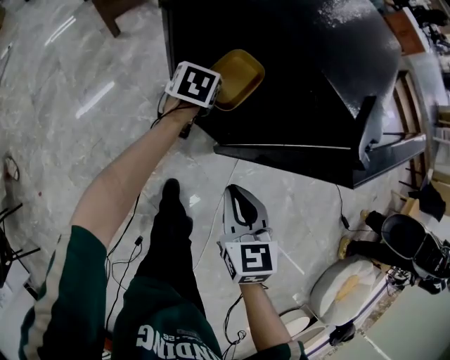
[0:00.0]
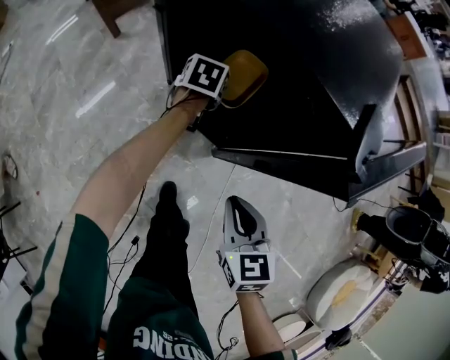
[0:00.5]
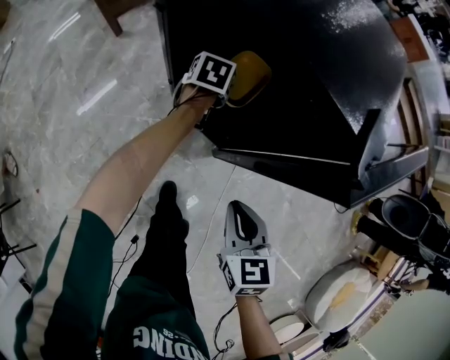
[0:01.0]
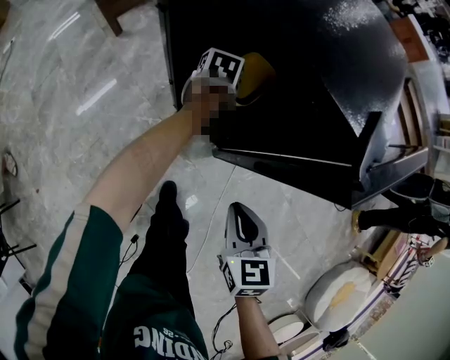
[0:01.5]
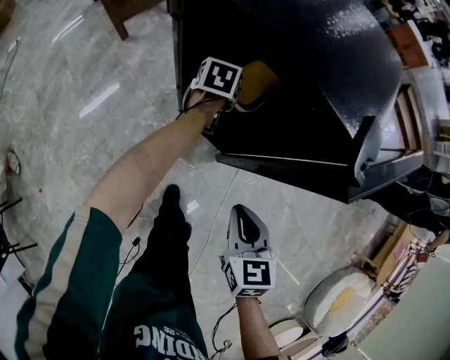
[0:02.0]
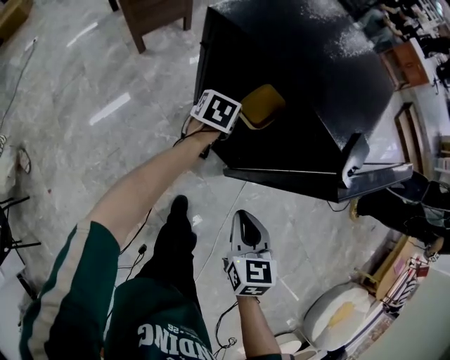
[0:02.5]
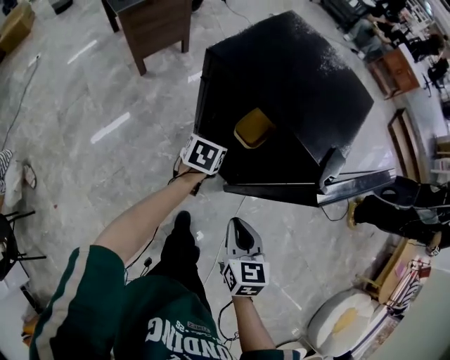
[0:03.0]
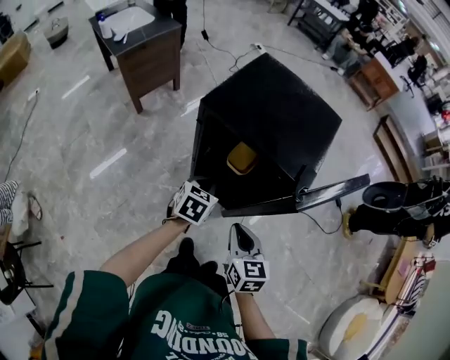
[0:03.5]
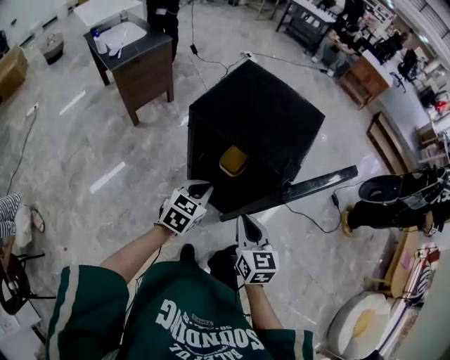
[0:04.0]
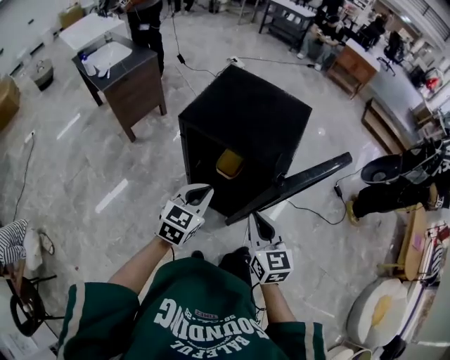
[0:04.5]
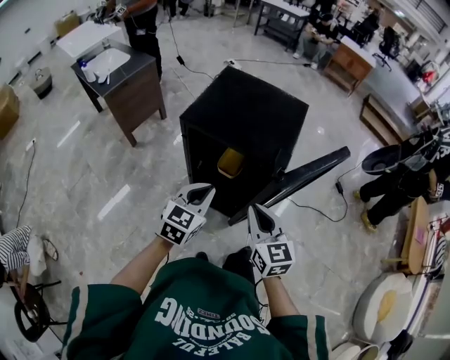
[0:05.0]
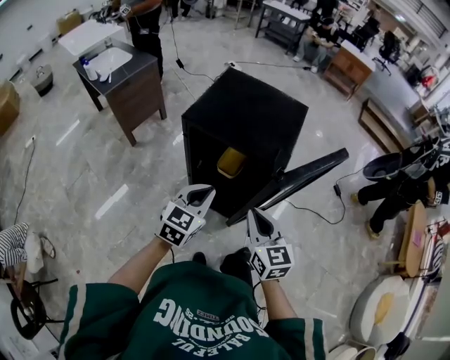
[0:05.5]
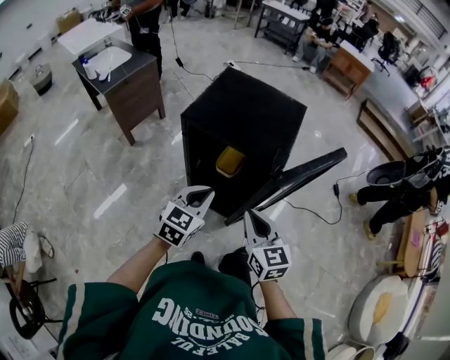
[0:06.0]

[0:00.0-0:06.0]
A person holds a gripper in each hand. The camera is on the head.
0:00.0 to 0:02.0: The left gripper shifts by approximately 5 cm, and opens up.
0:02.0 to 0:04.0: The right gripper is displaced upward by approximately 15 cm. The left gripper goes approximately 30 cm upward and backward, swivels about 40 degrees, and closes up.
0:04.0 to 0:06.0: Both grippers move upward, some 5 cm.

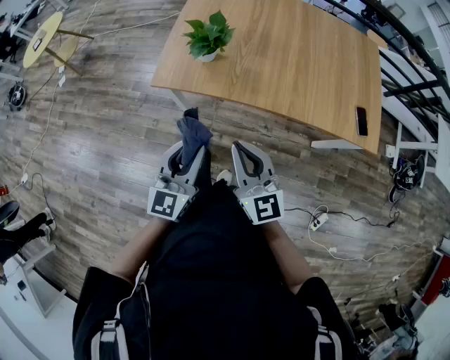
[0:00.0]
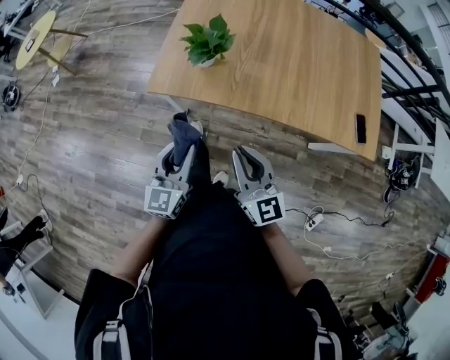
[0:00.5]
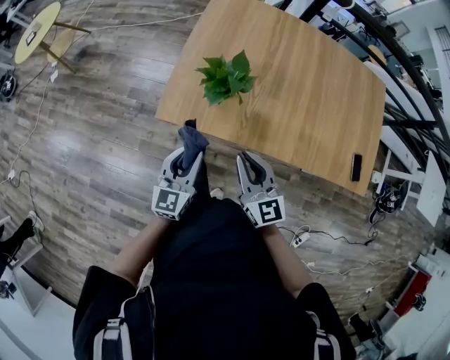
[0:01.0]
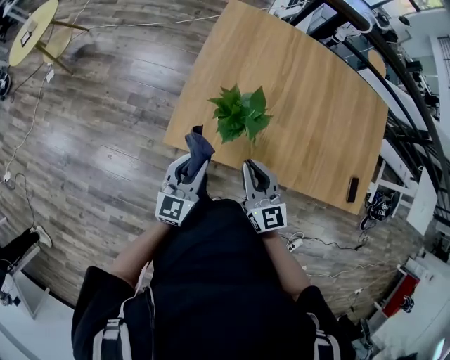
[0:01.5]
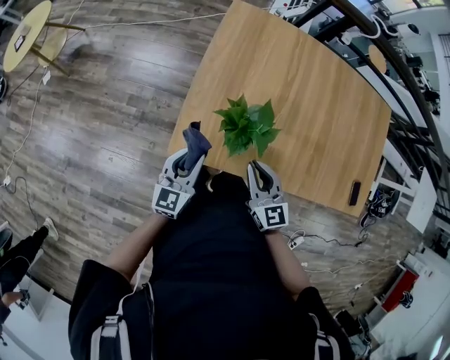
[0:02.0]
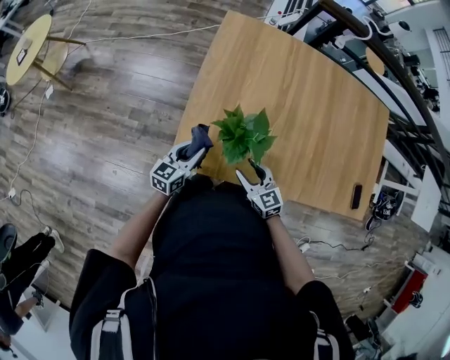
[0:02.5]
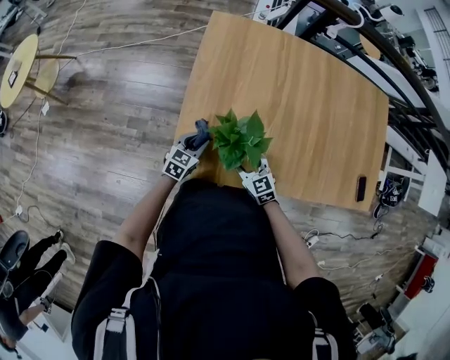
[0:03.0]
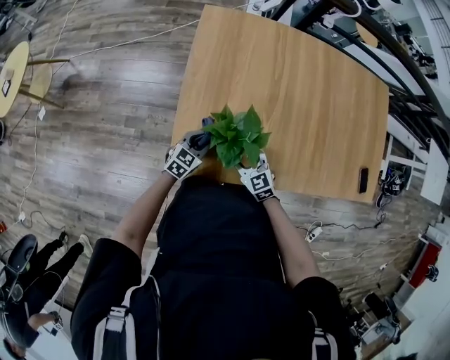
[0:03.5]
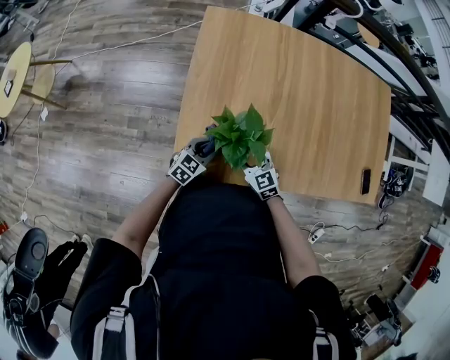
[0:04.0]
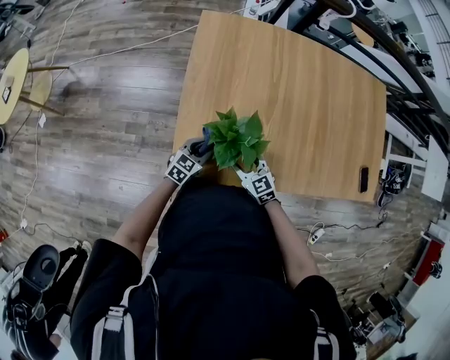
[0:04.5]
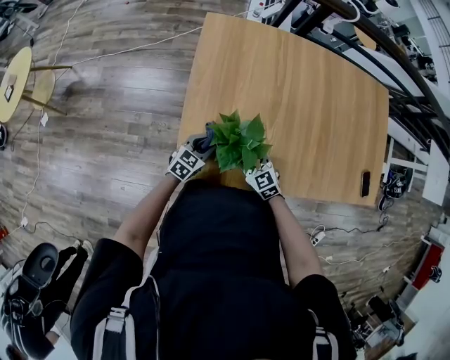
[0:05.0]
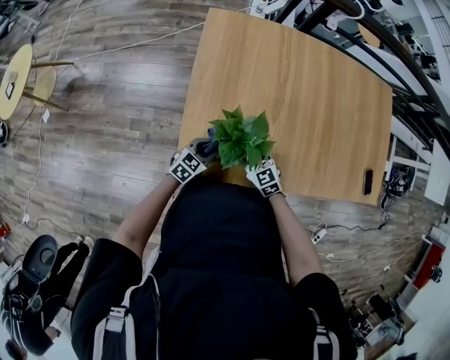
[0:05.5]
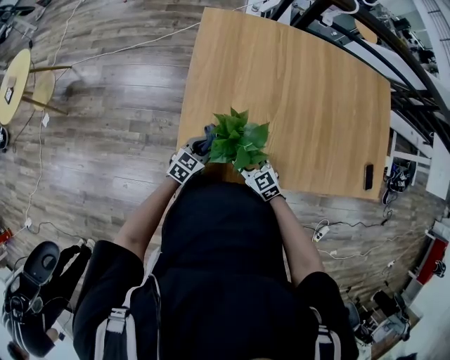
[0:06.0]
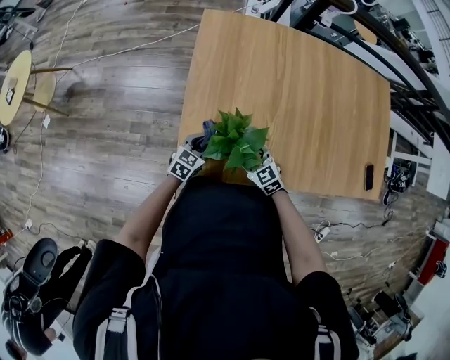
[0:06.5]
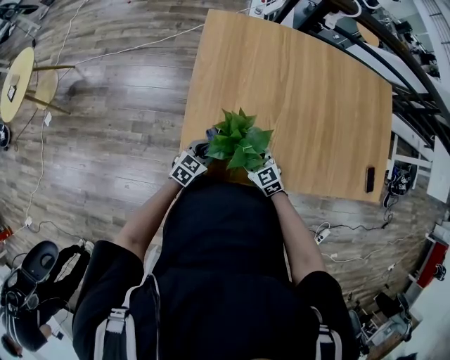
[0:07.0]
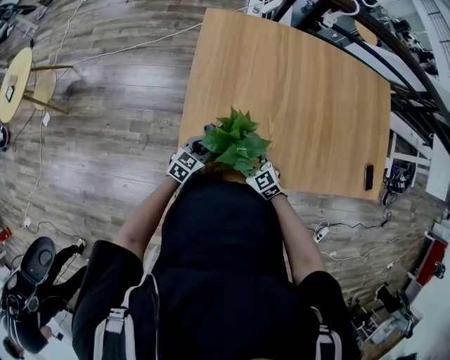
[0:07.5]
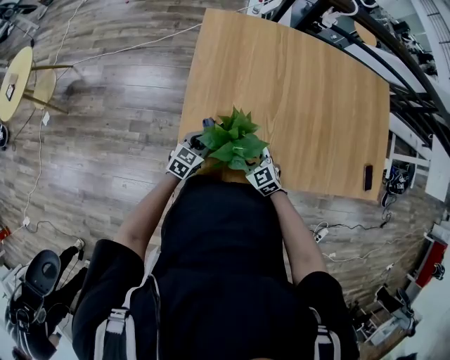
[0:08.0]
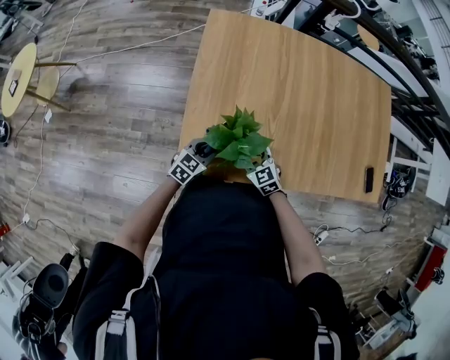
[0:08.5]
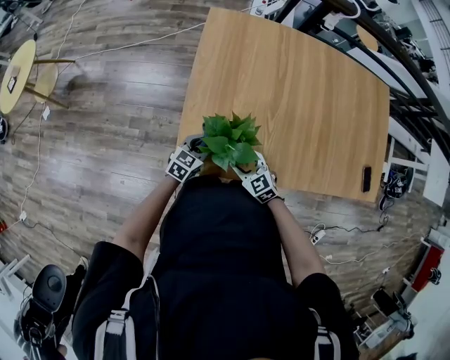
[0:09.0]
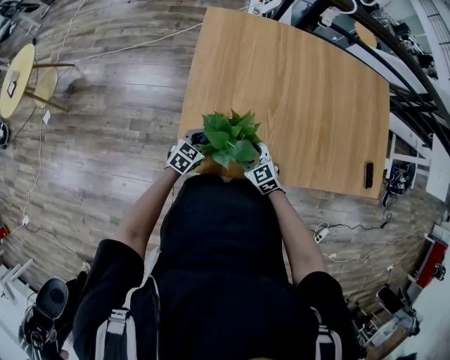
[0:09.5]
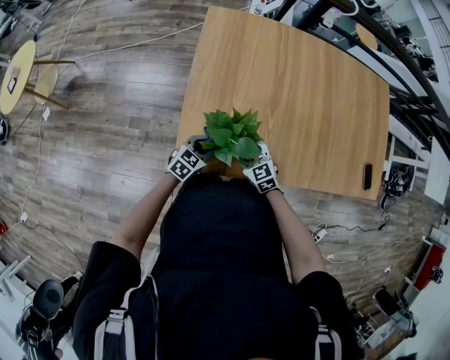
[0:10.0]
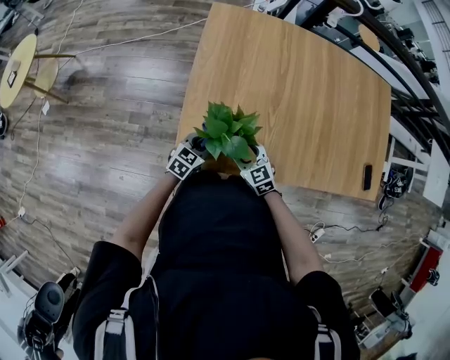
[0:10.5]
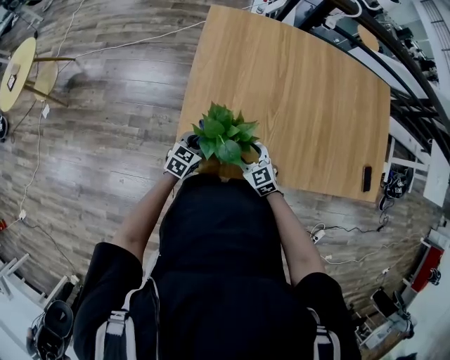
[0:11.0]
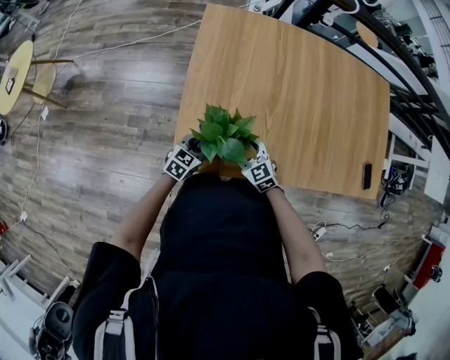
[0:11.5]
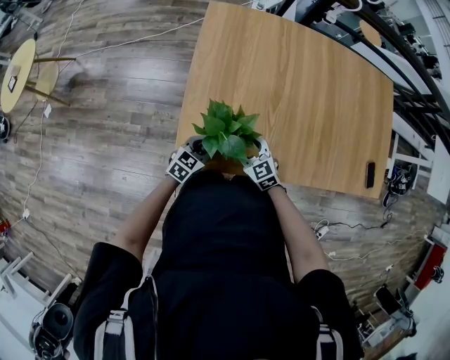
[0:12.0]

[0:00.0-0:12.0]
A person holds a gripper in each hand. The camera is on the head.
0:00.0 to 0:02.0: The left gripper shifts roughly 30 cm forward and to the left. Meanwhile the right gripper moves forward, roughly 25 cm.
0:02.0 to 0:04.0: The left gripper goes about 20 cm downward, forward and to the right, and swivels approximately 40 degrees; the right gripper heads downward and forward, covering roughly 15 cm, and opens up.
0:04.0 to 0:12.0: There are only small adjustments of the grippers.

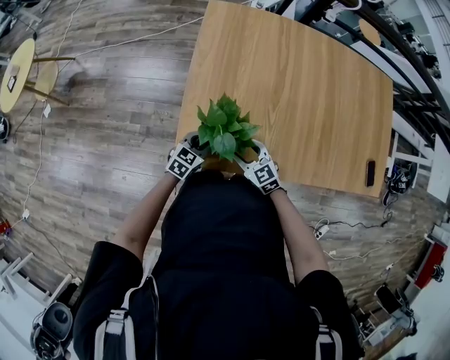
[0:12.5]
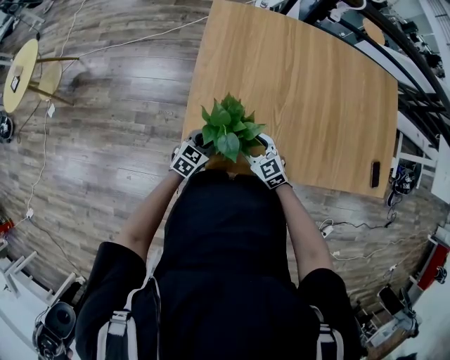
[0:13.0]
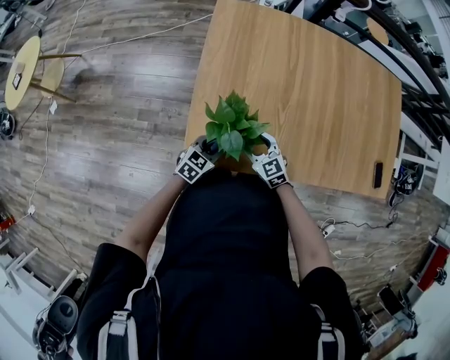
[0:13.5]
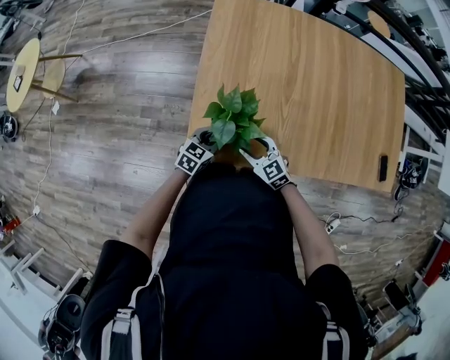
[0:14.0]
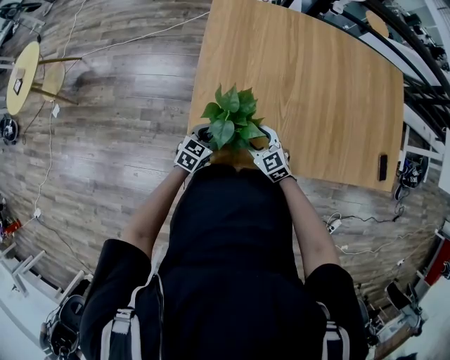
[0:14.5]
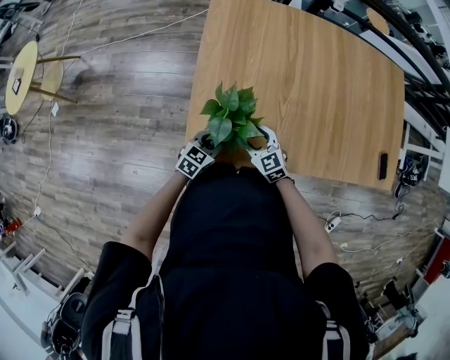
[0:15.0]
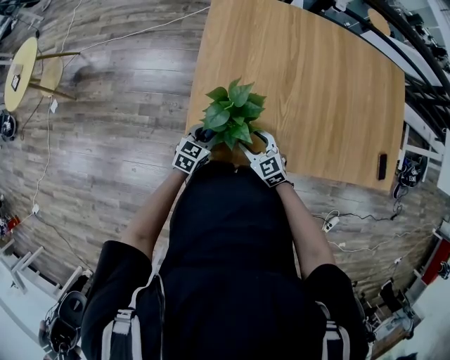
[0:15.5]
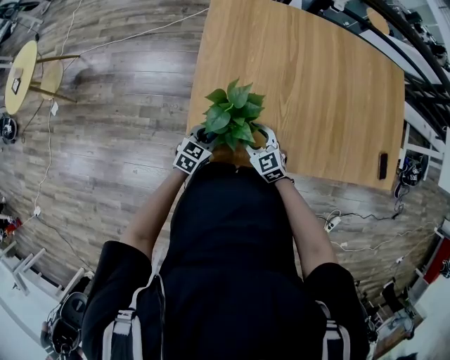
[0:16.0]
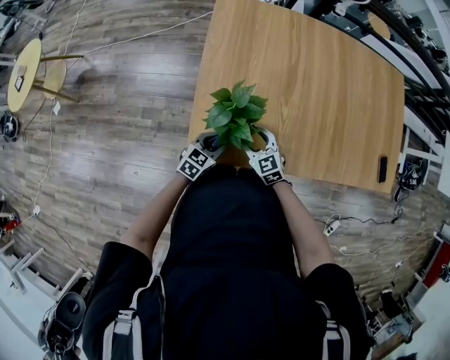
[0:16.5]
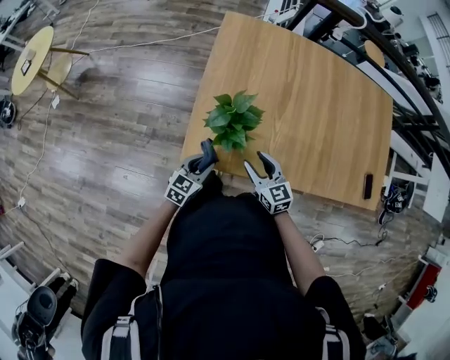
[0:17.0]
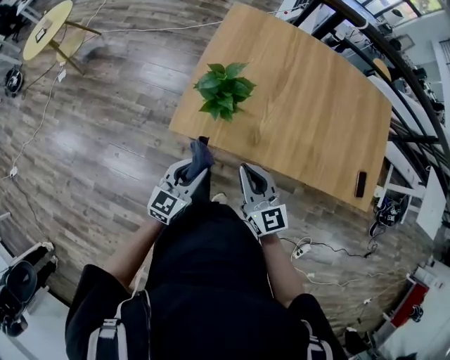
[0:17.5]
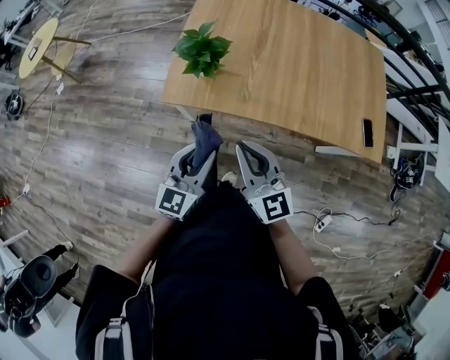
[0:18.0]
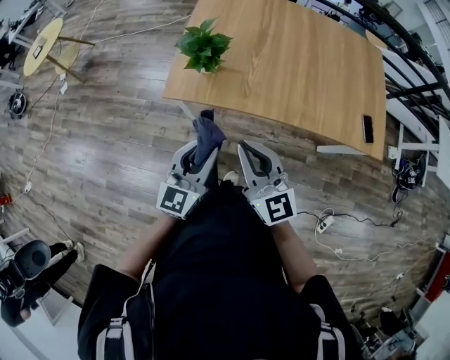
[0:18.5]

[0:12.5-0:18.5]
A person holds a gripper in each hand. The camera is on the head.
0:12.5 to 0:16.5: The grippers move only a little.
0:16.5 to 0:18.5: The grippers both shift backward and upward by roughly 40 cm. The left gripper changes its angle by about 40 degrees, while the right gripper tips its fingers upward by some 40 degrees, and closes up.

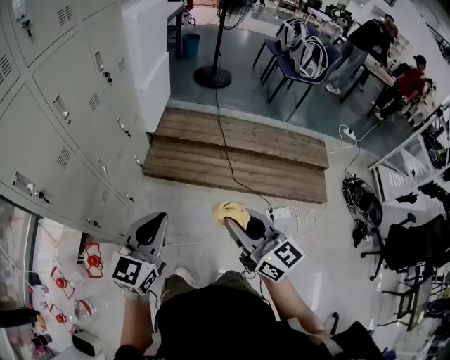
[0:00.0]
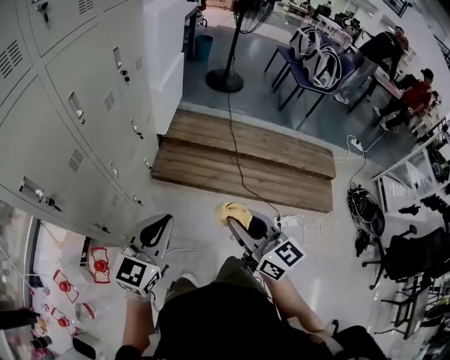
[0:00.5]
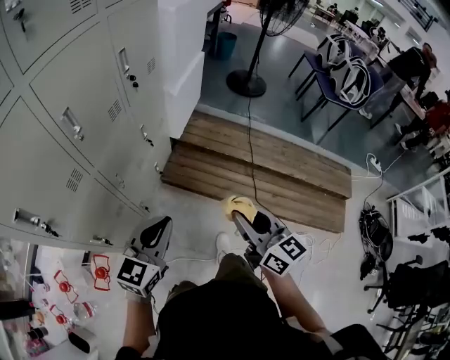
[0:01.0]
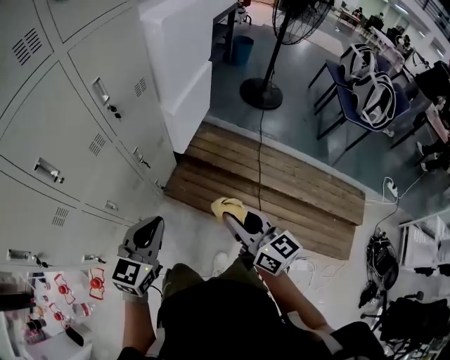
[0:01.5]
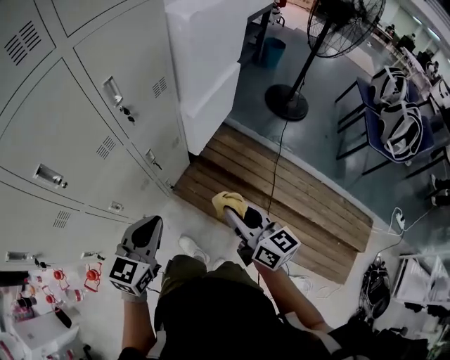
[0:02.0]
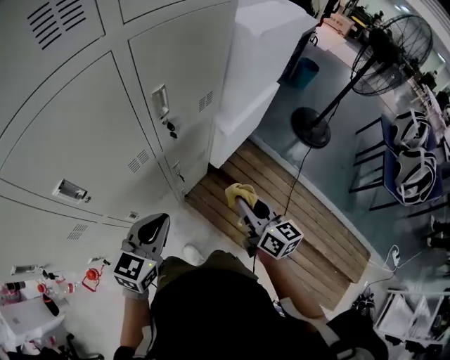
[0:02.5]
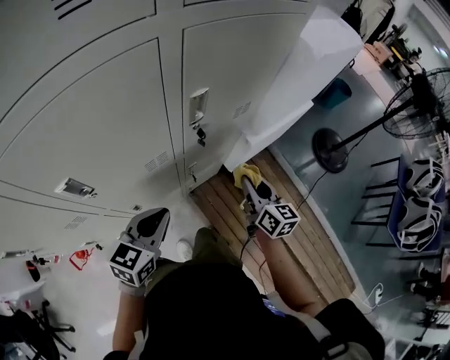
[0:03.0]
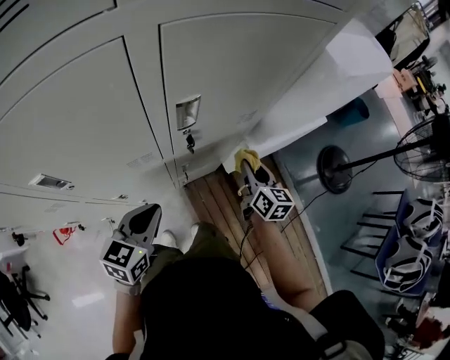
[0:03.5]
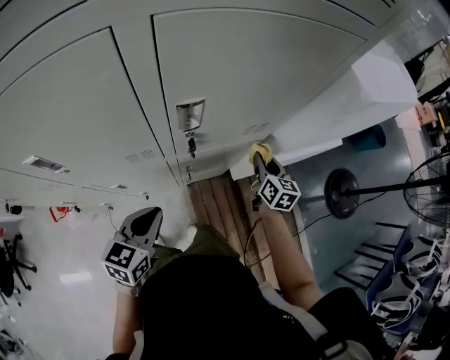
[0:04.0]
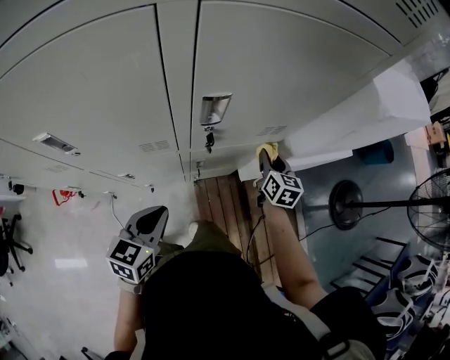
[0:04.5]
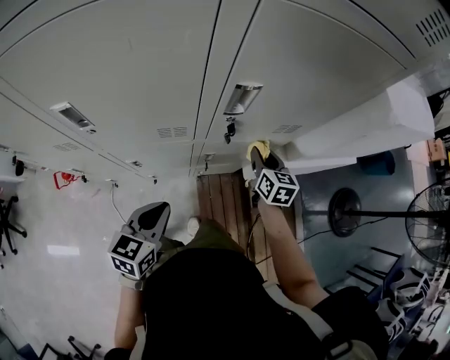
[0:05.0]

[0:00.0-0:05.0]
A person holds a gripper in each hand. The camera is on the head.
0:00.0 to 0:02.5: The pair of grippers is taken some 60 cm. The left gripper swivels some 30 degrees; the right gripper changes its angle by roughly 30 degrees.
0:02.5 to 0:05.0: The right gripper shifts by some 30 cm, and changes its angle by some 30 degrees, while the left gripper is displaced downward by some 10 cm, and swivels about 40 degrees.
